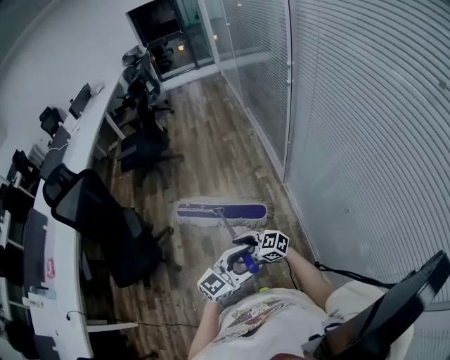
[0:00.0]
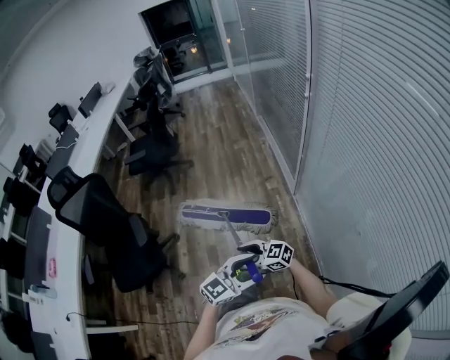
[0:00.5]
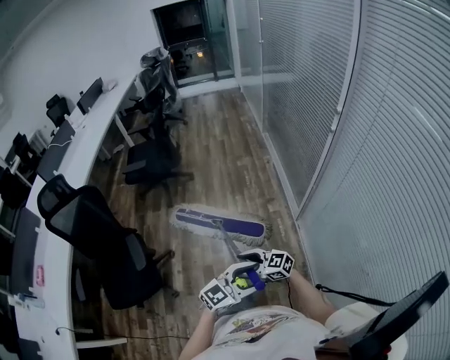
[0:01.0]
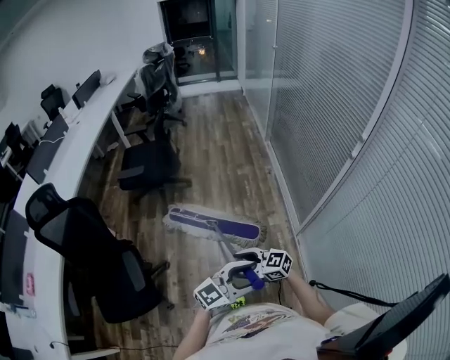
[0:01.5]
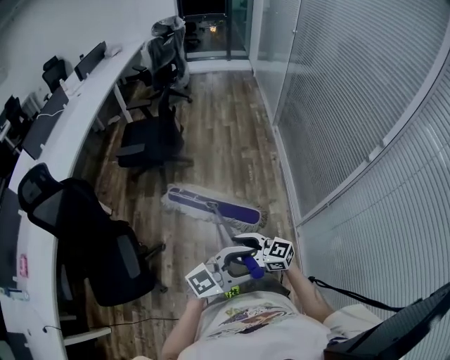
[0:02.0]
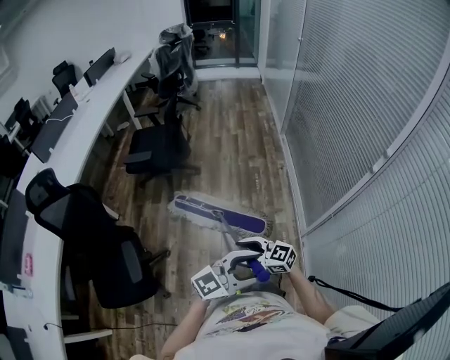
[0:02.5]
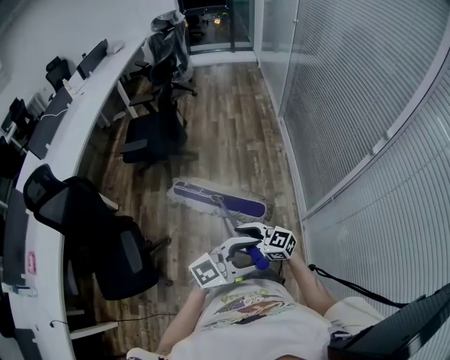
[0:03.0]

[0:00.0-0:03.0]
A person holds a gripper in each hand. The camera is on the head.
0:00.0 to 0:01.5: Both grippers are carried some 40 cm.
0:01.5 to 0:03.0: The left gripper shifts by some 10 cm. The right gripper ends up approximately 10 cm from where it was.

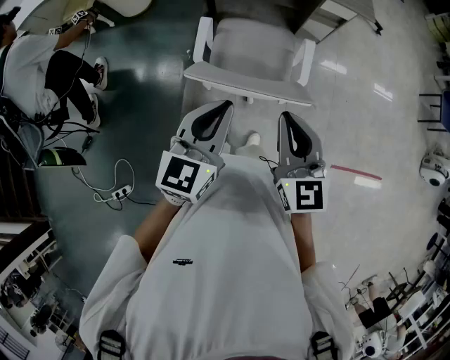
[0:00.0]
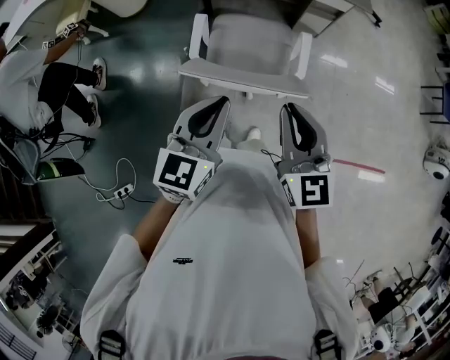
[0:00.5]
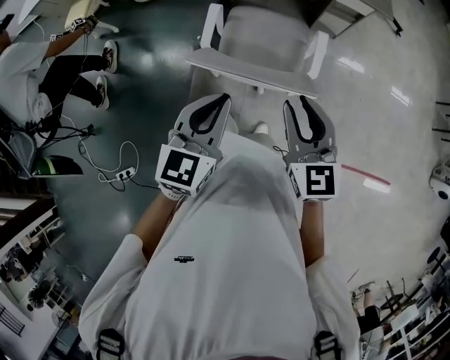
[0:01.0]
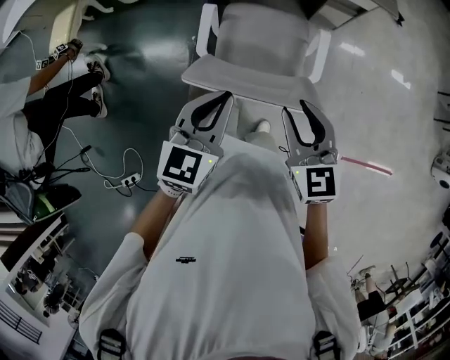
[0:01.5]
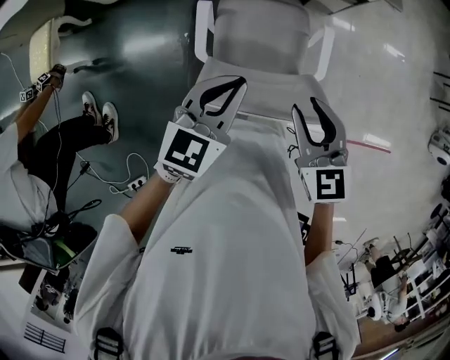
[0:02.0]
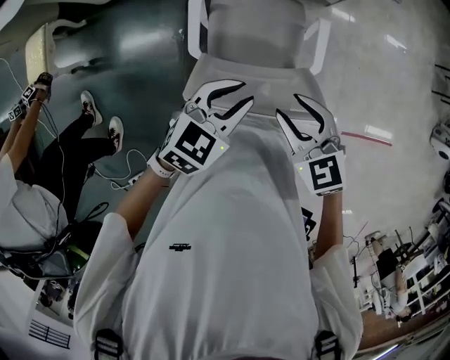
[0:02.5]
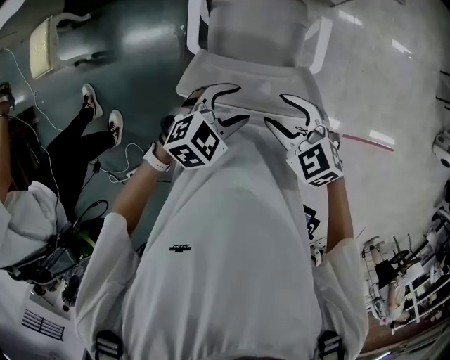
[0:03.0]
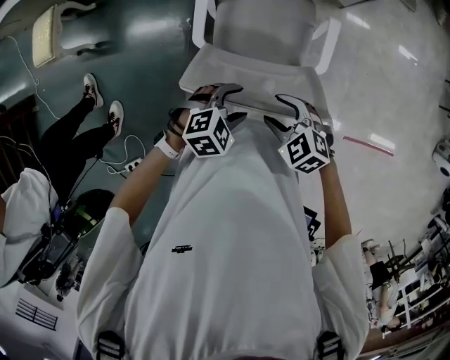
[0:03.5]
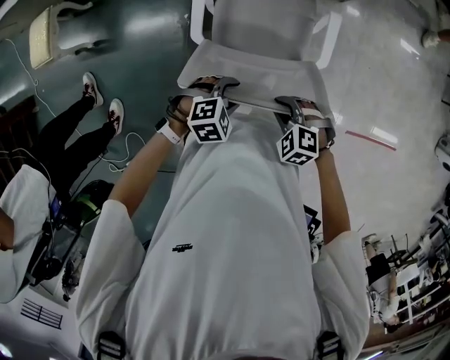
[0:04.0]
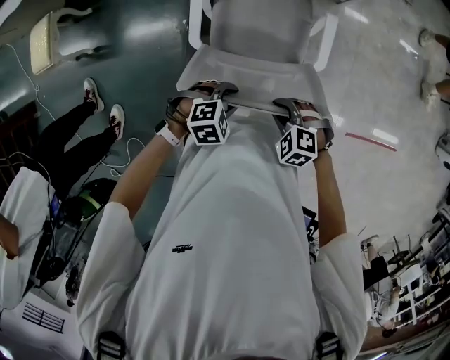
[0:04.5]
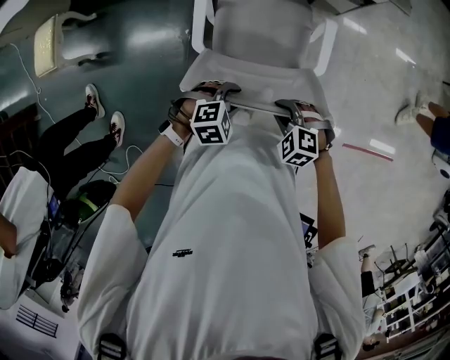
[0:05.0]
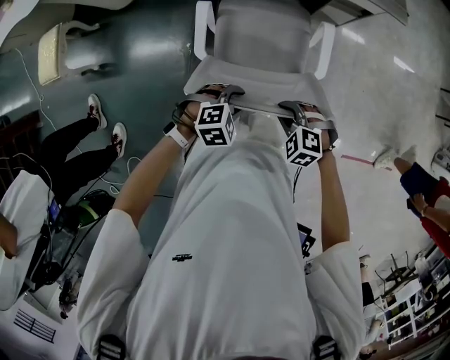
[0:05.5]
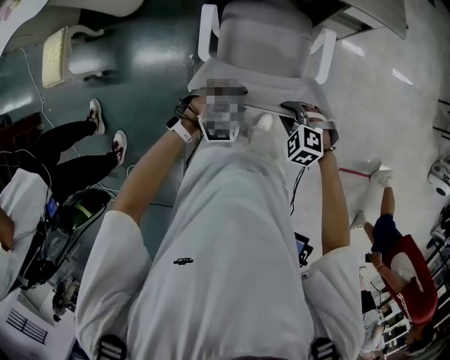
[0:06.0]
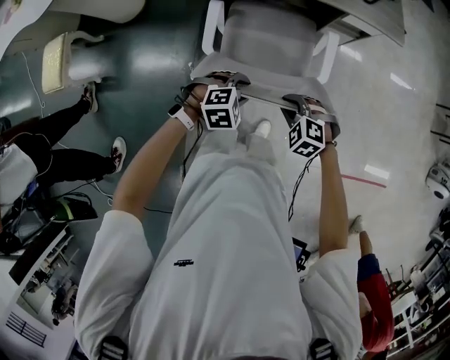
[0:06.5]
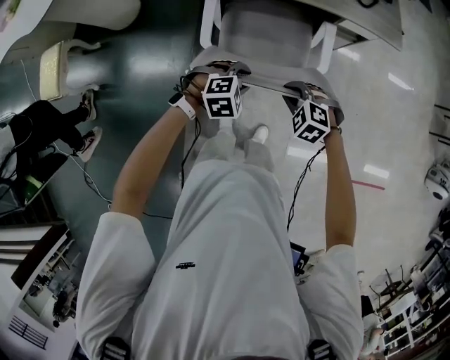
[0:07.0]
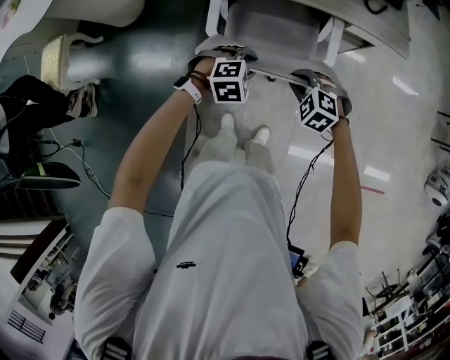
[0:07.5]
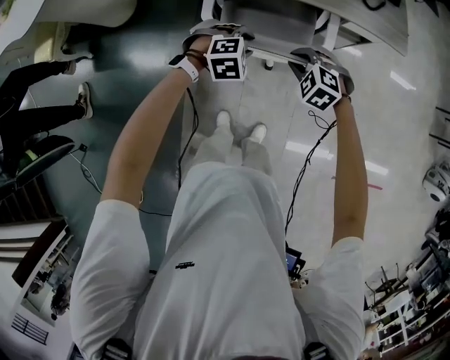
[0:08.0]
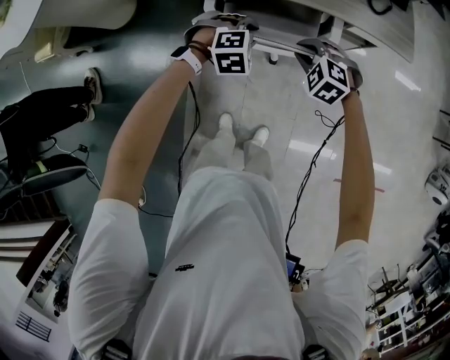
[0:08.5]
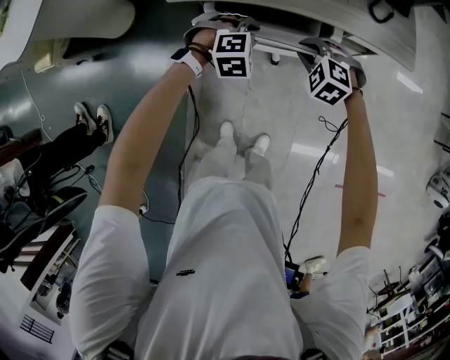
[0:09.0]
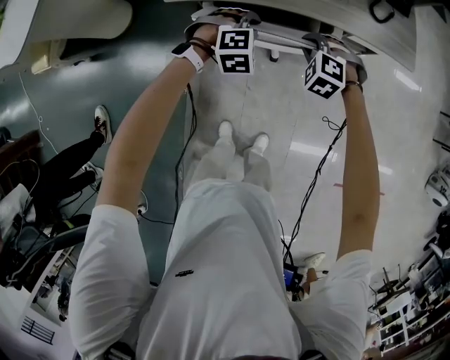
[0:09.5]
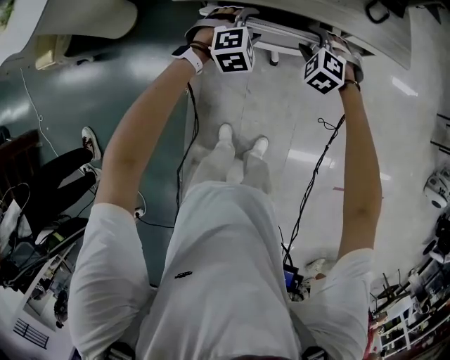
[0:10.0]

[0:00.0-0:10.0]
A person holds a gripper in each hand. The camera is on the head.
0:00.0 to 0:02.0: The left gripper heads forward, covering some 20 cm. The right gripper goes roughly 15 cm forward and downward, and opens.
0:02.0 to 0:04.0: Both grippers travel together downward, about 20 cm. The left gripper tilts its fingers some 40 degrees downward, and opens. The right gripper tilts its fingers approximately 30 degrees downward, and opens and closes again.
0:04.0 to 0:06.0: The left gripper ends up roughly 10 cm from where it was. The right gripper moves approximately 15 cm.
0:06.0 to 0:08.0: Both grippers travel together forward, roughly 25 cm.
0:08.0 to 0:10.0: Both grippers travel together forward, some 15 cm. The right gripper opens, while the left gripper opens its fingers.

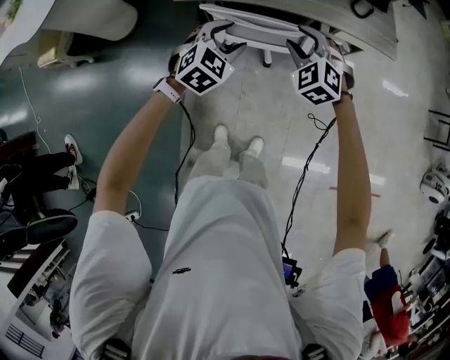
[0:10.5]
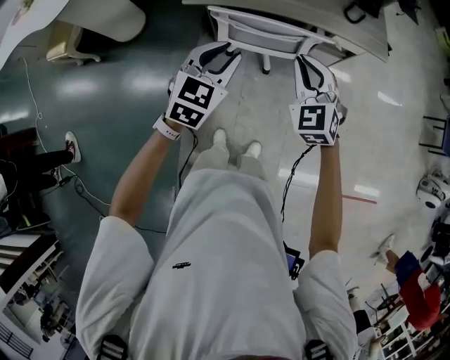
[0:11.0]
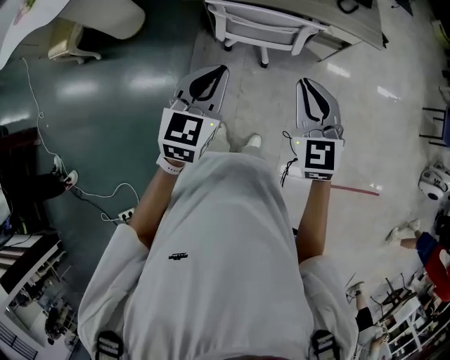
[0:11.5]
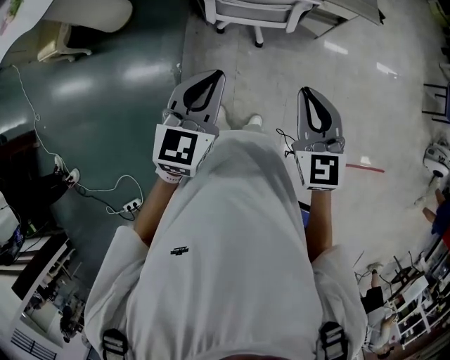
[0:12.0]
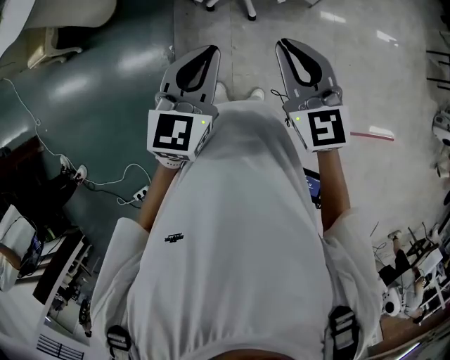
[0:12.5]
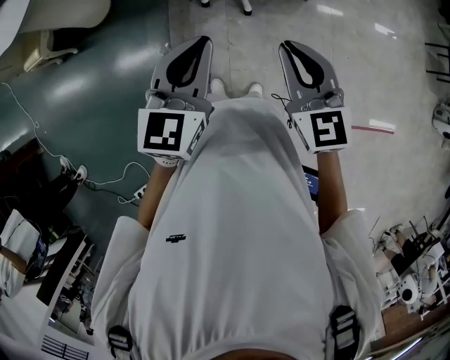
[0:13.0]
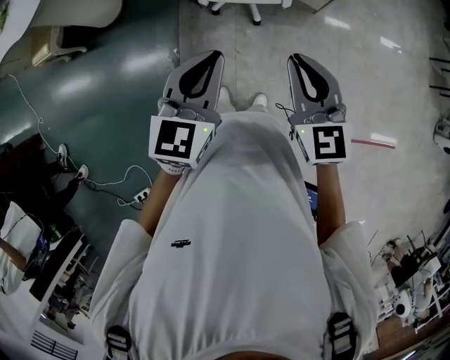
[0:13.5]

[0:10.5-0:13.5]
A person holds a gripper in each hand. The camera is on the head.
0:10.5 to 0:12.0: Both grippers move backward and upward, approximately 30 cm. The right gripper rotates roughly 40 degrees, and closes up, while the left gripper changes its angle by some 30 degrees, and closes its fingers.
0:12.0 to 0:13.5: The grippers stay close to where they were, moving slightly.

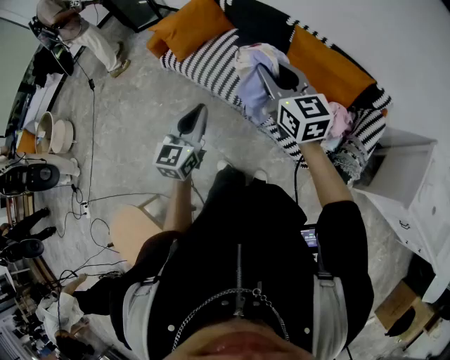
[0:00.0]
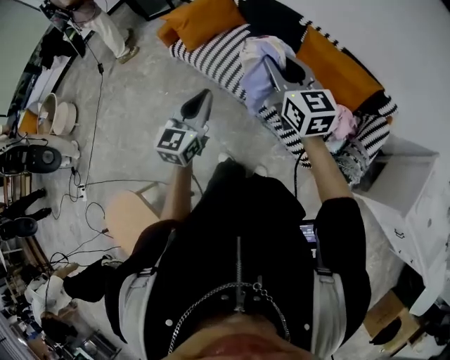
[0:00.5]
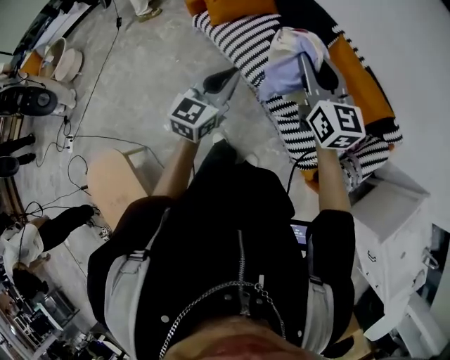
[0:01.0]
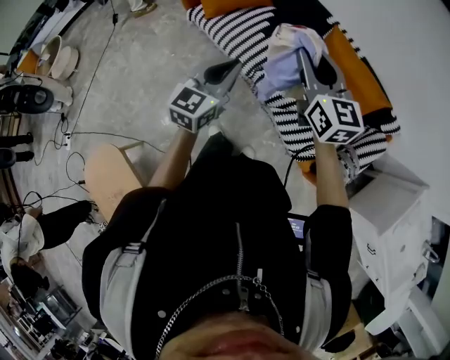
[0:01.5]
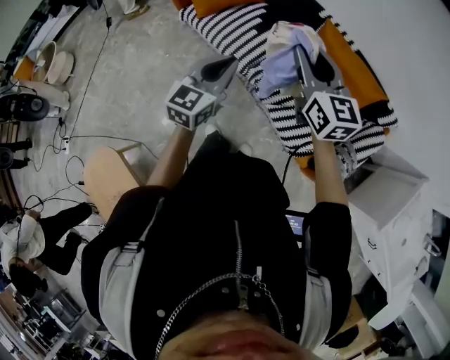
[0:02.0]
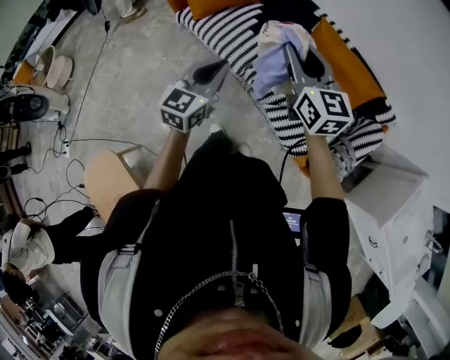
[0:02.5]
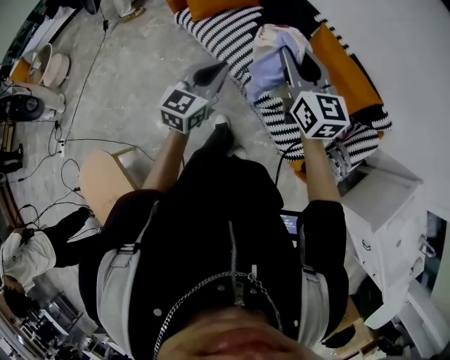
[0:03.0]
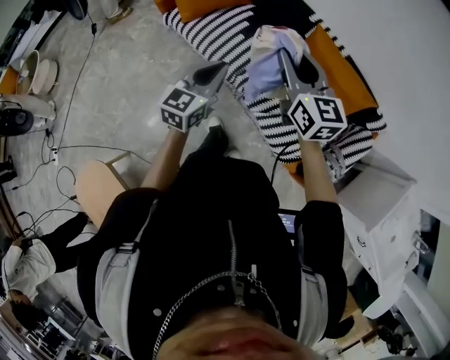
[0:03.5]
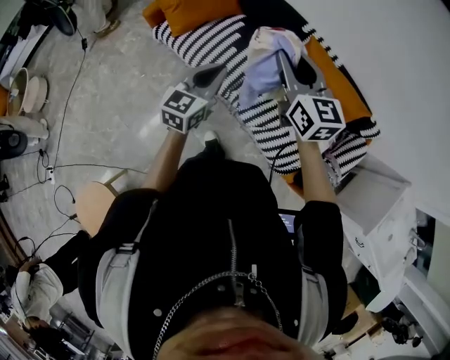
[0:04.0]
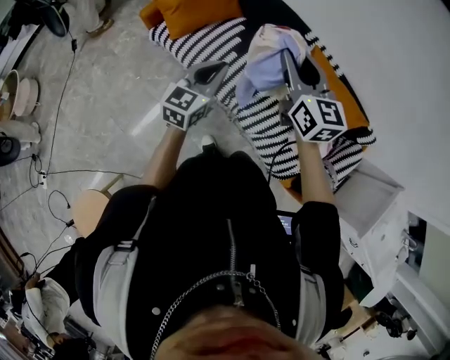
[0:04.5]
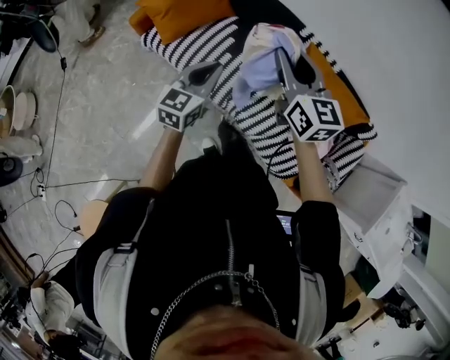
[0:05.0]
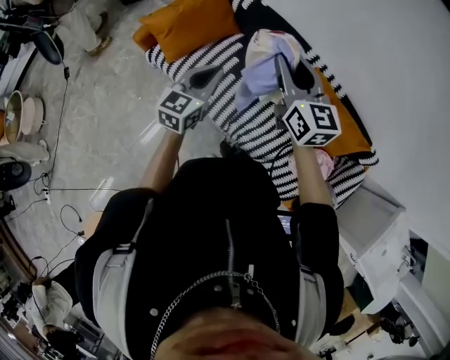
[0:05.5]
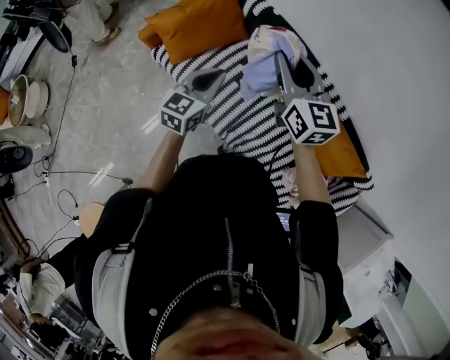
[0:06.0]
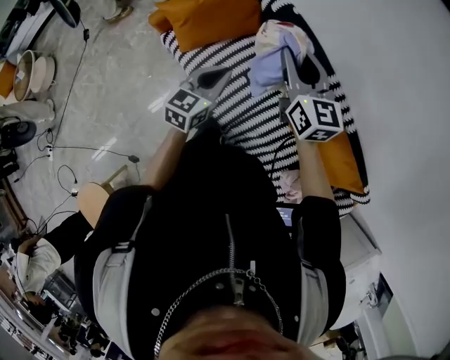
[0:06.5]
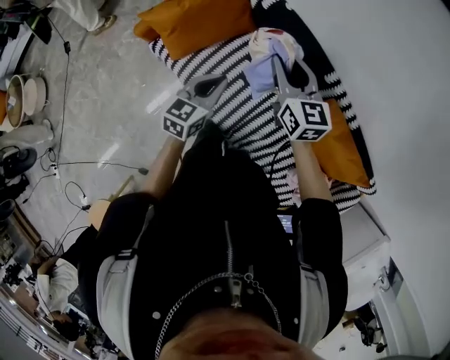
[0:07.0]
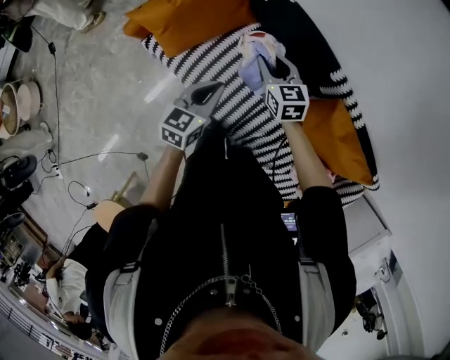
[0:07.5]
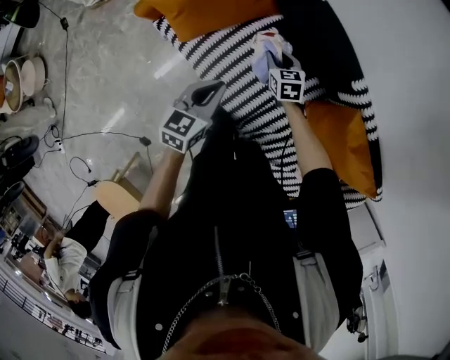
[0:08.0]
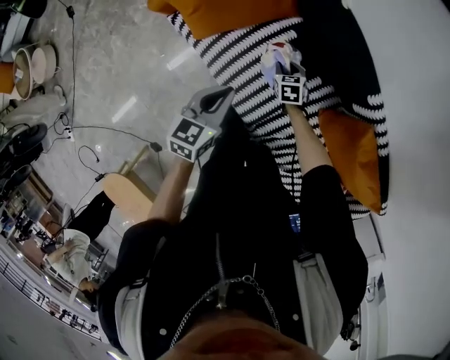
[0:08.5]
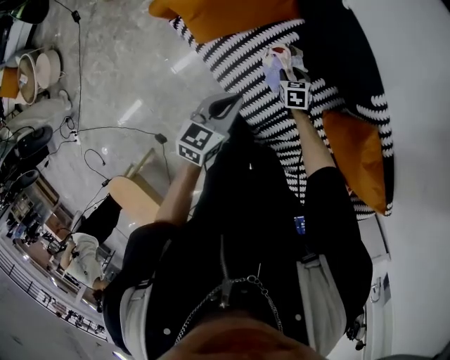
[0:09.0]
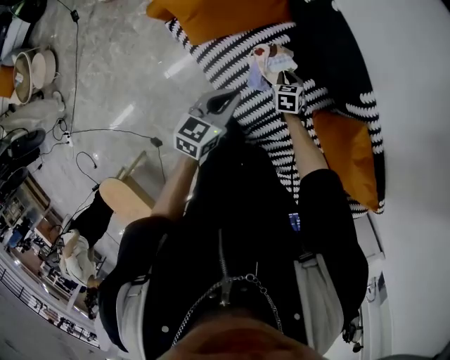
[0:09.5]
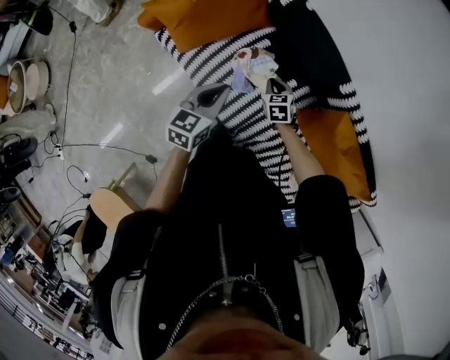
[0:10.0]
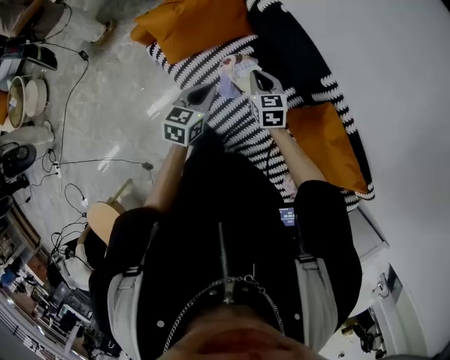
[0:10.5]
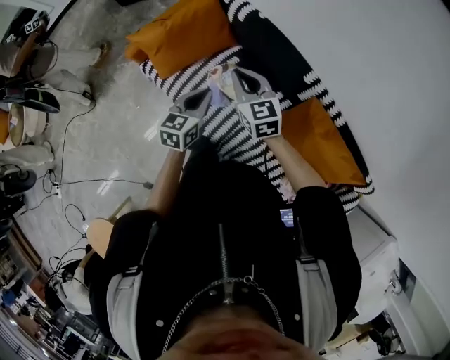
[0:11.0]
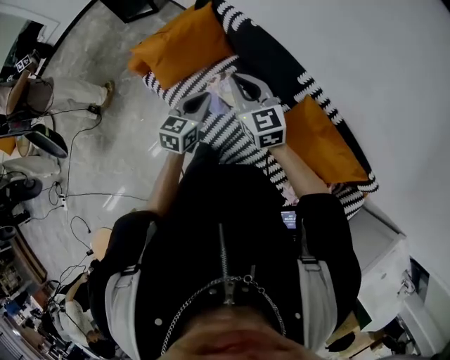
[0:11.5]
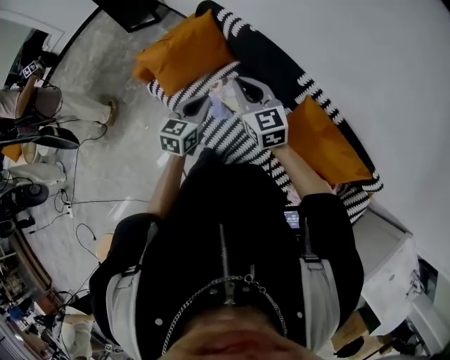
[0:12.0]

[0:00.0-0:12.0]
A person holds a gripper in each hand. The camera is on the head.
0:00.0 to 0:02.0: Both grippers move to the right, approximately 5 cm.
0:02.0 to 0:04.0: The two grippers go some 15 cm forward.
0:04.0 to 0:06.0: Both grippers travel together forward, approximately 30 cm.
0:06.0 to 0:08.0: The left gripper goes roughly 20 cm downward, forward and to the left, while the right gripper travels downward by some 40 cm, and points its fingers roughly 40 degrees further downward.
0:08.0 to 0:10.0: The right gripper moves backward, roughly 10 cm, goes downward and returns, some 10 cm each way, and closes its fingers.
0:10.0 to 0:12.0: The right gripper shifts about 35 cm upward, and tips its fingers upward by approximately 40 degrees. The left gripper moves upward, to the right and backward, about 15 cm.
